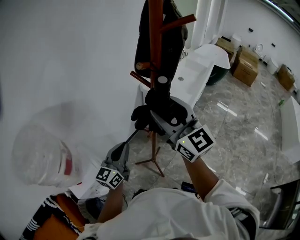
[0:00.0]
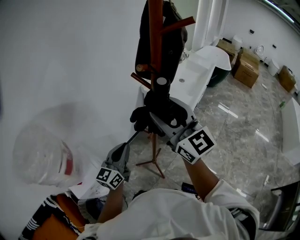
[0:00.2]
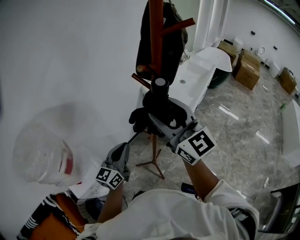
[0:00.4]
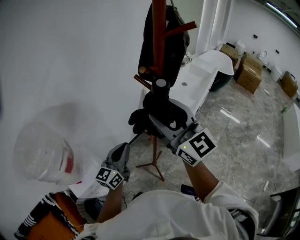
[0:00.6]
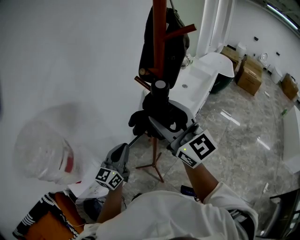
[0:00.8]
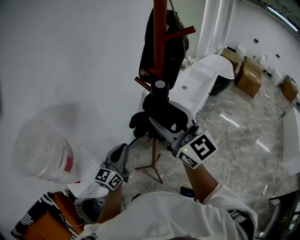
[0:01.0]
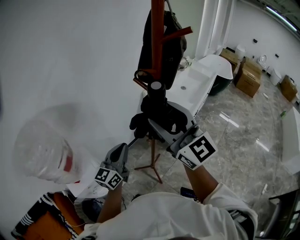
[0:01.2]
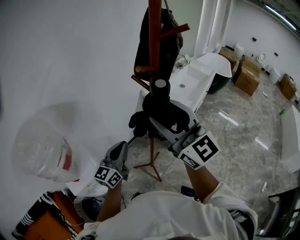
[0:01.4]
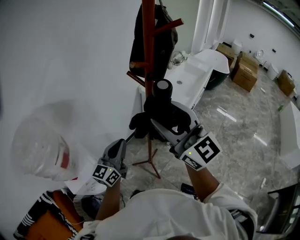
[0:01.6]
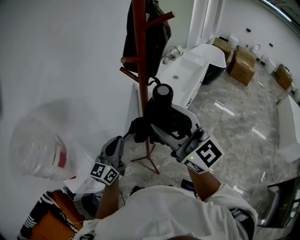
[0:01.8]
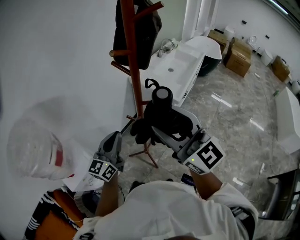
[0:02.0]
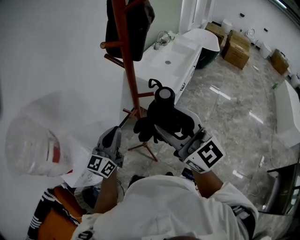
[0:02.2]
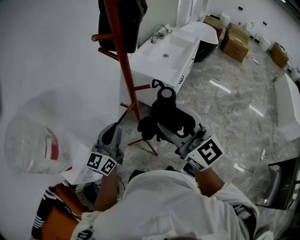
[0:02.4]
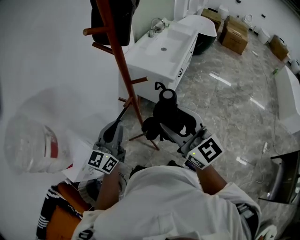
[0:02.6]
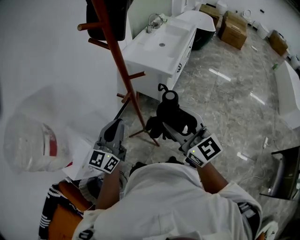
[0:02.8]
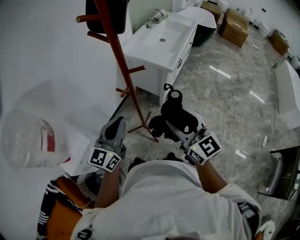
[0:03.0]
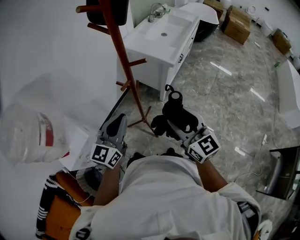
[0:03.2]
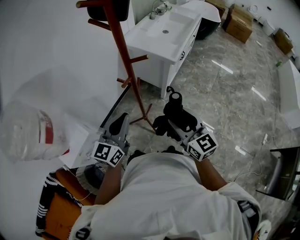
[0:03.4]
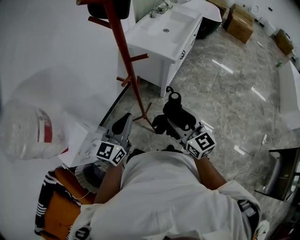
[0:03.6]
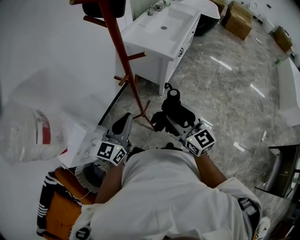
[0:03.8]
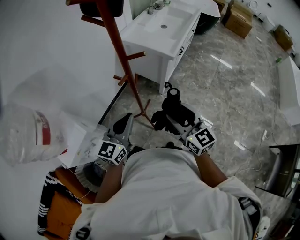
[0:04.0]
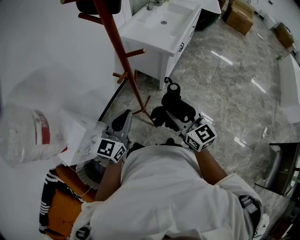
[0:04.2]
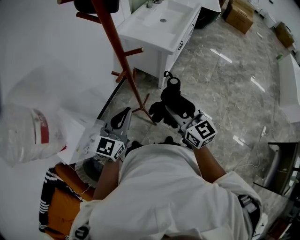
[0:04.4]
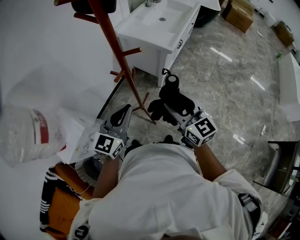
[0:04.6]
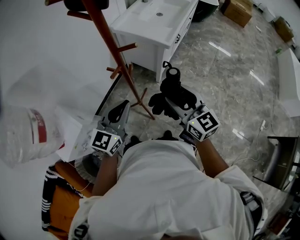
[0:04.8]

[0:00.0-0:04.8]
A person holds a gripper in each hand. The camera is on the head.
0:00.0 to 0:01.6: The right gripper shifts about 5 cm backward.
0:01.6 to 0:03.2: The right gripper is displaced downward and to the right by about 25 cm, and turns by some 30 degrees. Meanwhile the left gripper shifts some 10 cm to the right and backward.
0:03.2 to 0:04.8: The right gripper travels forward by some 5 cm; the left gripper ends up roughly 5 cm from where it was.

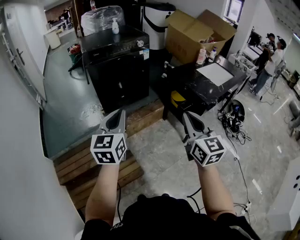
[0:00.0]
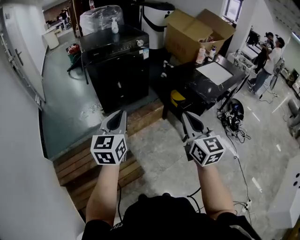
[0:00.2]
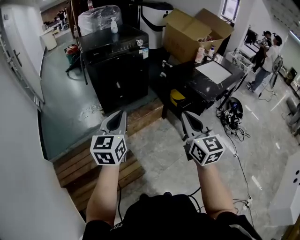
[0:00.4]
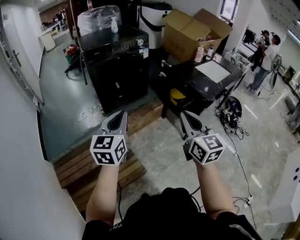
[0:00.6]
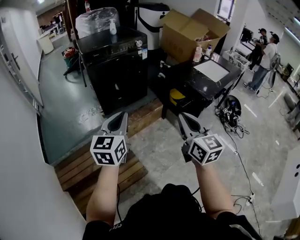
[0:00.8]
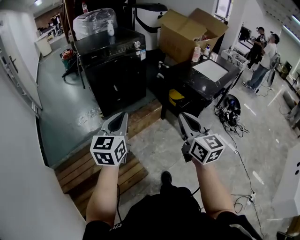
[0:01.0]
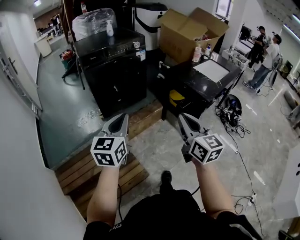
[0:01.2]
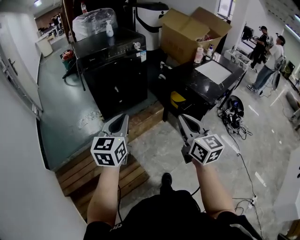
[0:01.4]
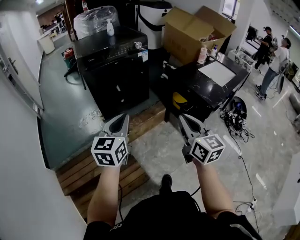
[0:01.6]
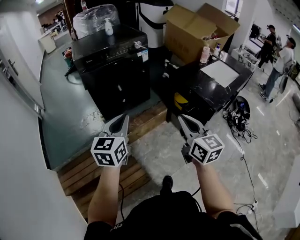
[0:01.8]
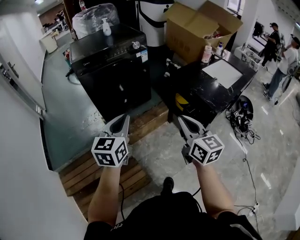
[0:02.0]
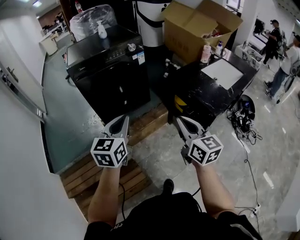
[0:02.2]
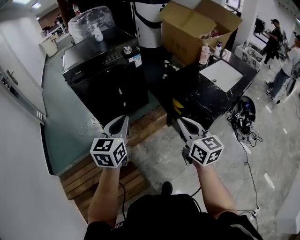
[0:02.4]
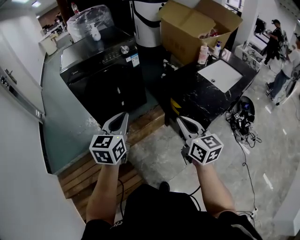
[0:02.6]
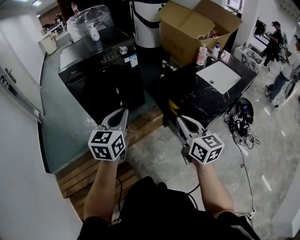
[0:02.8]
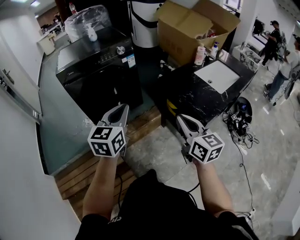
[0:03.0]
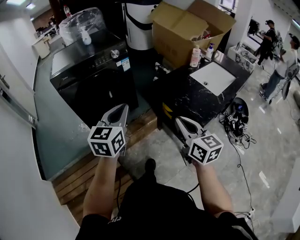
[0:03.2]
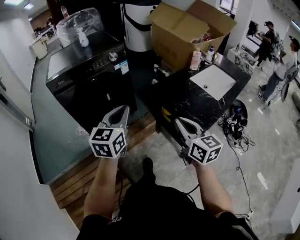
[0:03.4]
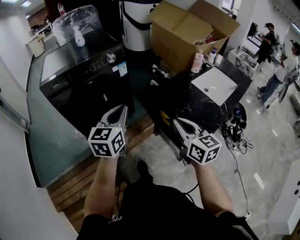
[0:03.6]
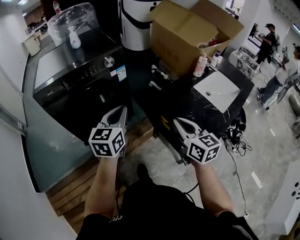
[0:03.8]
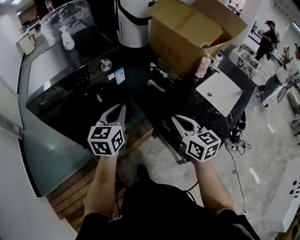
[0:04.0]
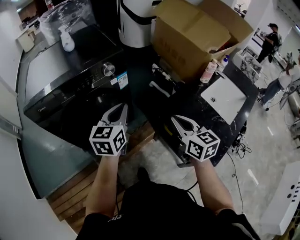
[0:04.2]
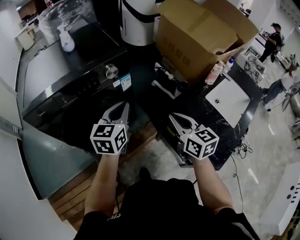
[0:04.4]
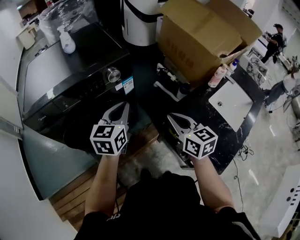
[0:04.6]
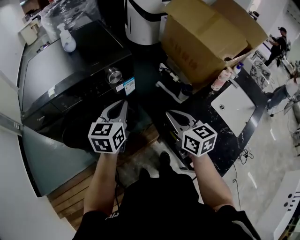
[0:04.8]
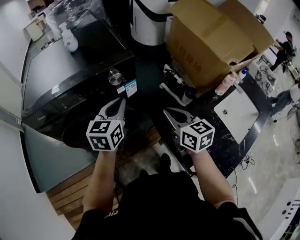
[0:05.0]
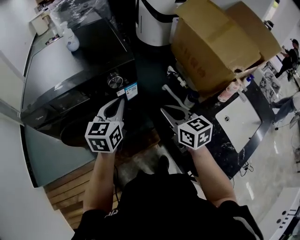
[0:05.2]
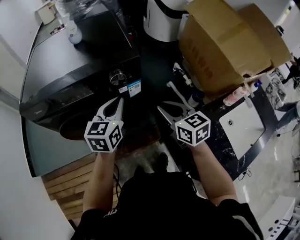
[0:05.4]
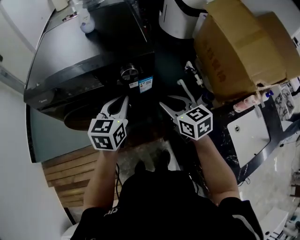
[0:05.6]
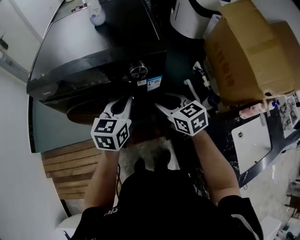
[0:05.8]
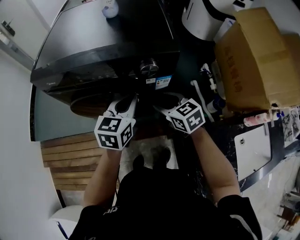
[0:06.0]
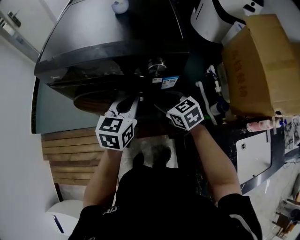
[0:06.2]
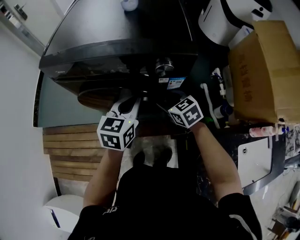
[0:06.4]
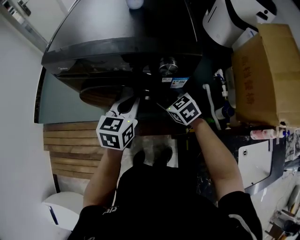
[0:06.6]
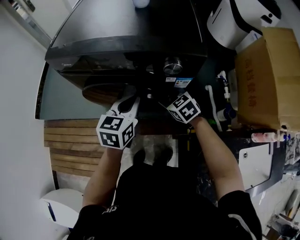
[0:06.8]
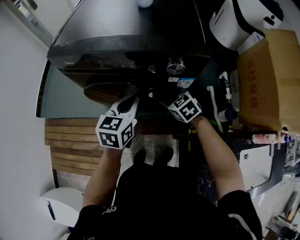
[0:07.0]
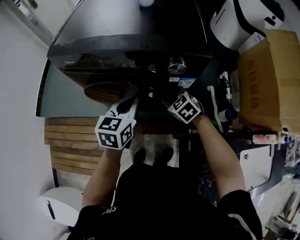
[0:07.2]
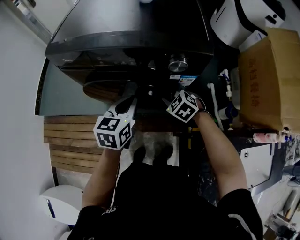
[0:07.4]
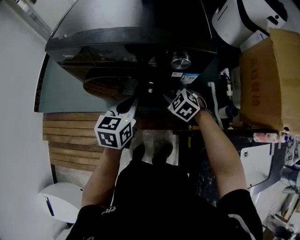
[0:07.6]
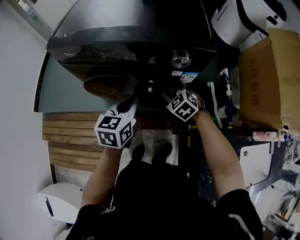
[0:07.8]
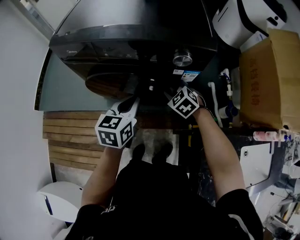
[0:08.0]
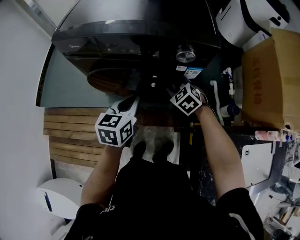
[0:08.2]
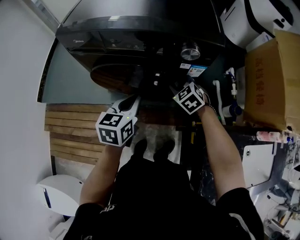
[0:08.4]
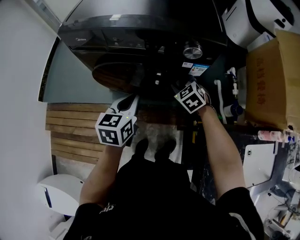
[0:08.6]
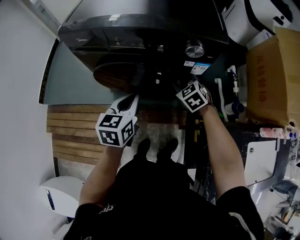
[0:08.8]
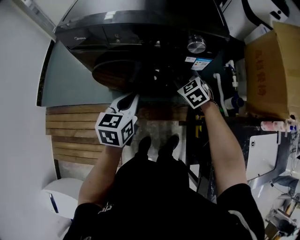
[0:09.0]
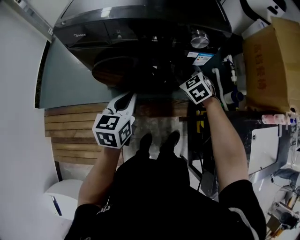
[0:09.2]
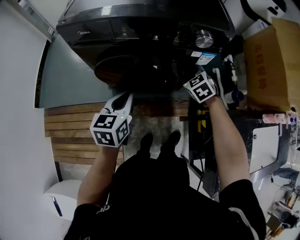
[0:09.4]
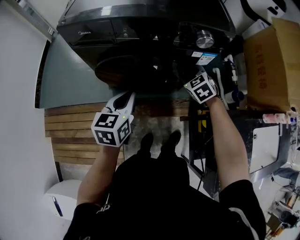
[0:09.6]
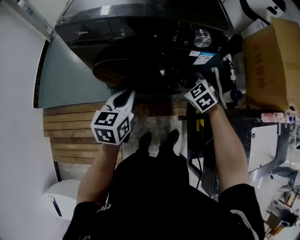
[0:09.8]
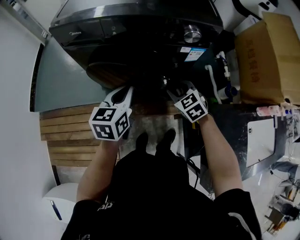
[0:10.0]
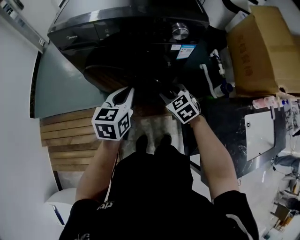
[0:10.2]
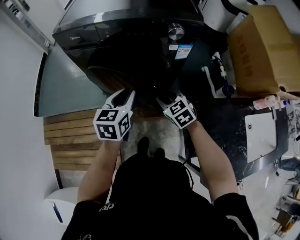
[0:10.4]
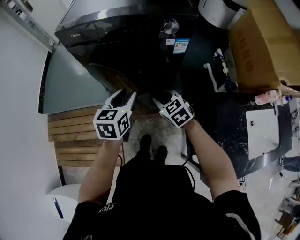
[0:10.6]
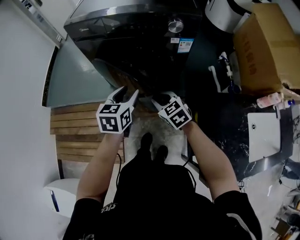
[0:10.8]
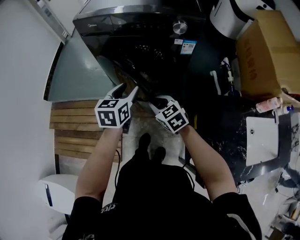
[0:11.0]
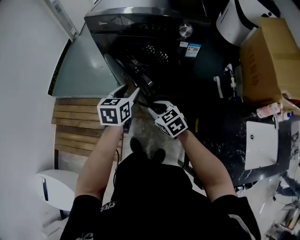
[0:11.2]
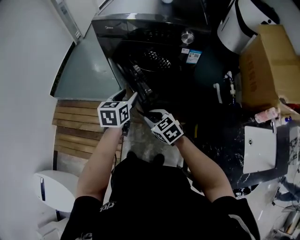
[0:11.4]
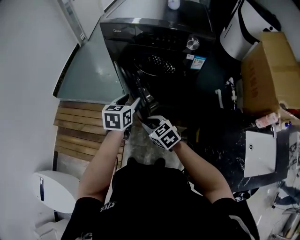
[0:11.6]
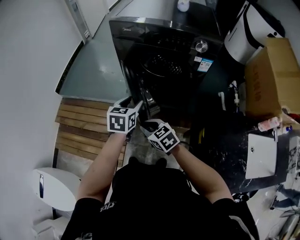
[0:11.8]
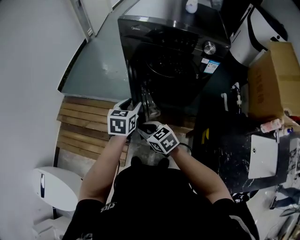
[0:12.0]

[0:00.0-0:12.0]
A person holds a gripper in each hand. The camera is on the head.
0:00.0 to 0:01.6: Both grippers move forward, approximately 10 cm.
0:01.6 to 0:03.0: The left gripper moves forward and to the right, some 20 cm, while the right gripper travels to the right and forward by approximately 20 cm.
0:03.0 to 0:04.4: The two grippers go about 35 cm forward.
0:04.4 to 0:06.0: The right gripper ends up approximately 25 cm from where it was, swivels about 50 degrees, and opens, while the left gripper shifts by approximately 15 cm, and rotates some 20 degrees.
0:06.0 to 0:07.6: The right gripper heads downward, covering about 10 cm, and rotates some 40 degrees, while the left gripper is displaced to the left and downward by approximately 10 cm.
0:07.6 to 0:09.0: The left gripper heads to the left, covering some 5 cm.
0:09.0 to 0:10.4: The right gripper shifts some 15 cm backward.
0:10.4 to 0:12.0: The left gripper shifts by roughly 20 cm, and opens. Meanwhile the right gripper ends up some 30 cm from where it was, and swivels approximately 30 degrees.

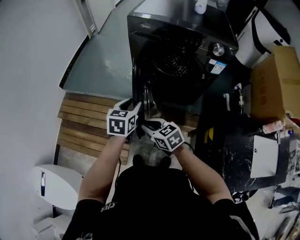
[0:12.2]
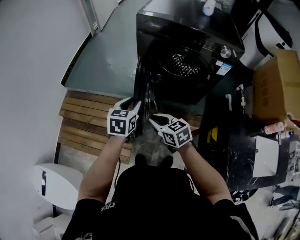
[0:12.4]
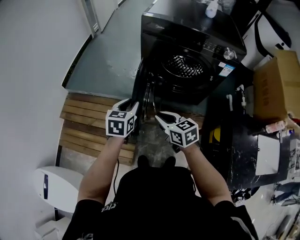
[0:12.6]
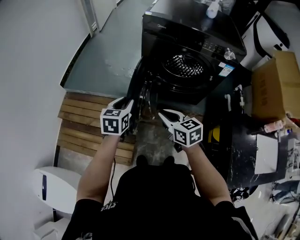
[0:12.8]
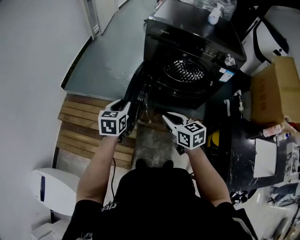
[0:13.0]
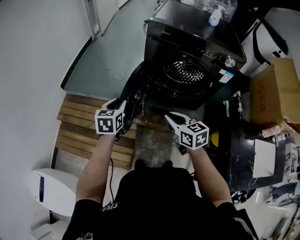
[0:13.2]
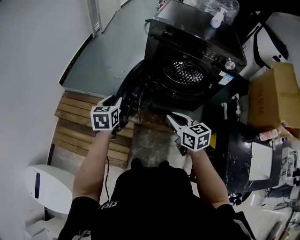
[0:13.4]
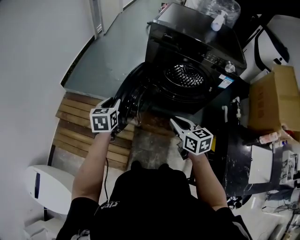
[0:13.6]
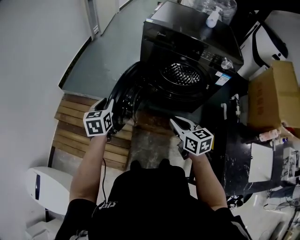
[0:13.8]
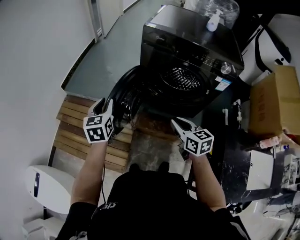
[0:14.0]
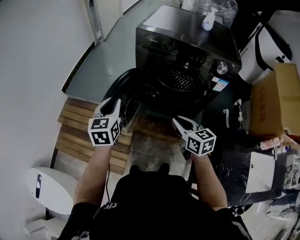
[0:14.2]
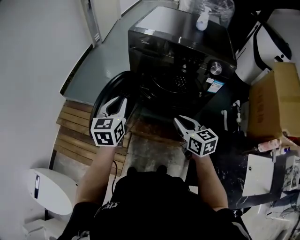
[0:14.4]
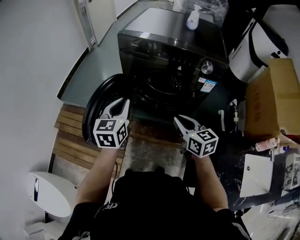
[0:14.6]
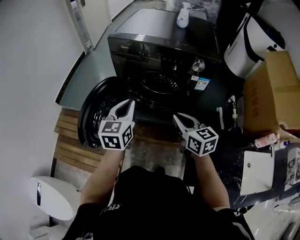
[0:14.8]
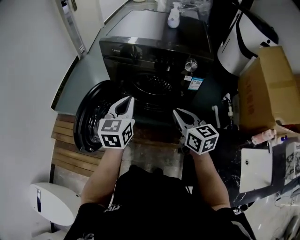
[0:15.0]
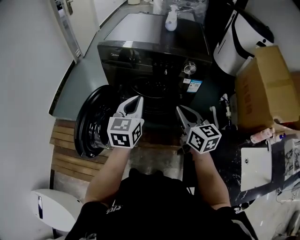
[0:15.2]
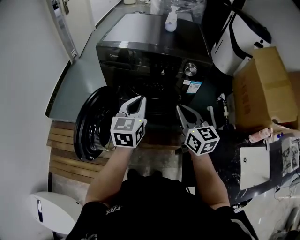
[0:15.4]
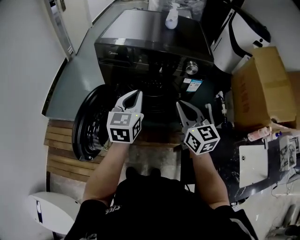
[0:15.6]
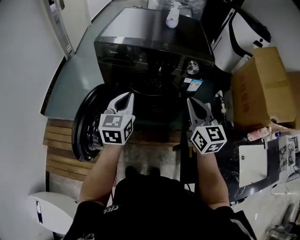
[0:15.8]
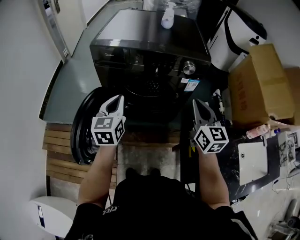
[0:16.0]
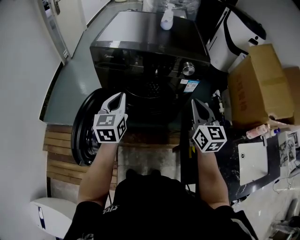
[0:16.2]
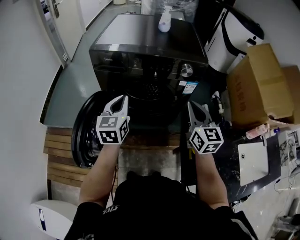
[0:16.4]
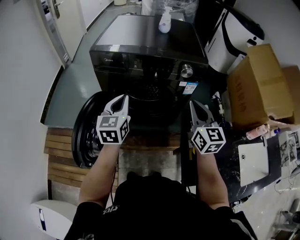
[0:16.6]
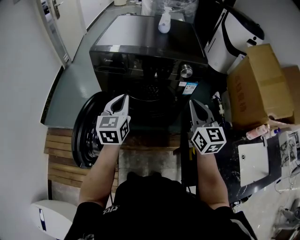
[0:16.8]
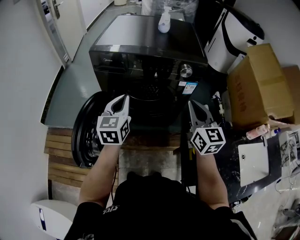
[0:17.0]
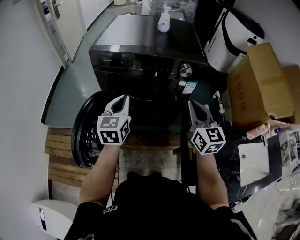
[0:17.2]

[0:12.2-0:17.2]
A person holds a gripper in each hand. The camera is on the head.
0:12.2 to 0:13.8: The right gripper travels to the right and upward by some 10 cm, and changes its angle by some 20 degrees. The left gripper goes approximately 20 cm to the left.
0:13.8 to 0:15.6: The left gripper goes roughly 35 cm to the right, turns by approximately 30 degrees, and closes up. Meanwhile the right gripper shifts approximately 25 cm to the right, upward and forward, and changes its angle by roughly 30 degrees.
0:15.6 to 0:17.2: The right gripper shifts some 5 cm to the right.

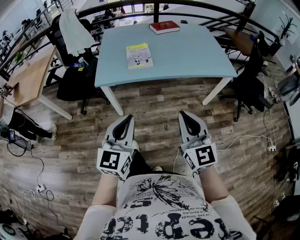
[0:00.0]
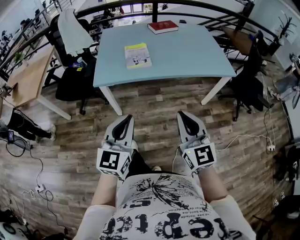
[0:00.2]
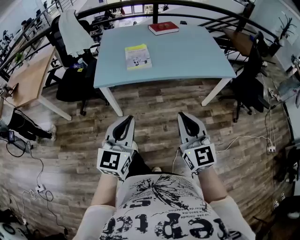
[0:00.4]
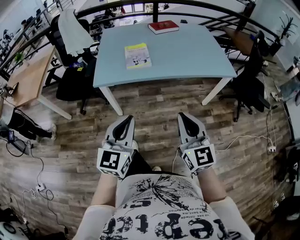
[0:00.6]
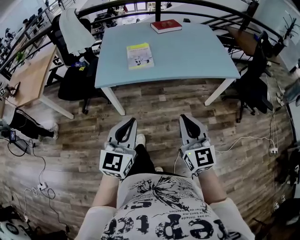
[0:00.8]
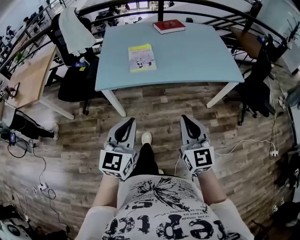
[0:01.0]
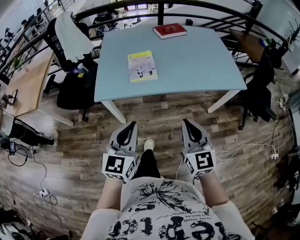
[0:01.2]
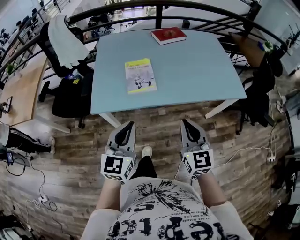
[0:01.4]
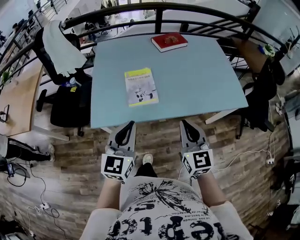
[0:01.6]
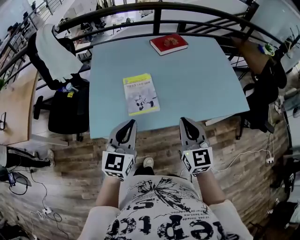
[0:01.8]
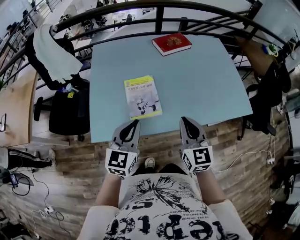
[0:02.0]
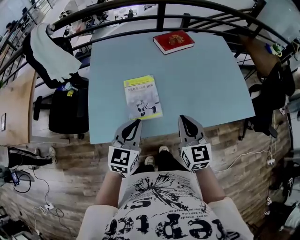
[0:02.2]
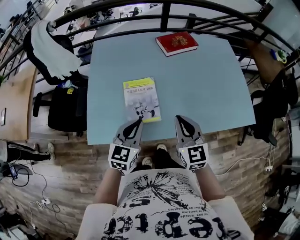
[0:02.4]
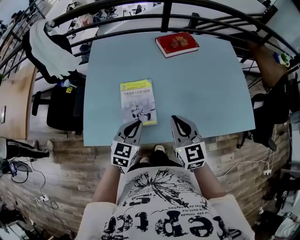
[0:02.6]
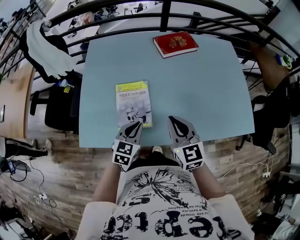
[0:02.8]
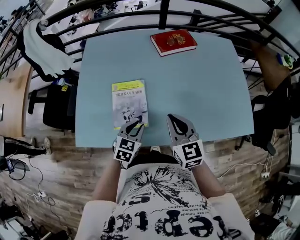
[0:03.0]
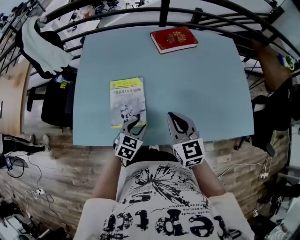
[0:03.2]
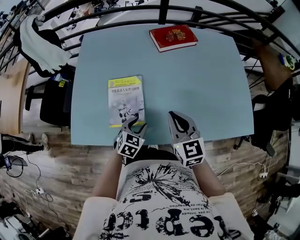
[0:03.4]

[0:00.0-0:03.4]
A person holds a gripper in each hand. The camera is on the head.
0:00.0 to 0:01.6: Both grippers travel together forward, about 30 cm.
0:01.6 to 0:03.4: The right gripper heads forward, covering approximately 25 cm. The left gripper heads downward, forward and to the right, covering roughly 35 cm, tips its fingers downward by some 40 degrees, and opens its fingers.
